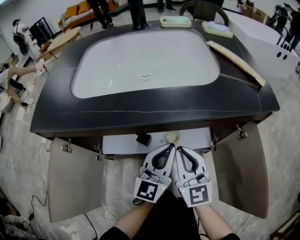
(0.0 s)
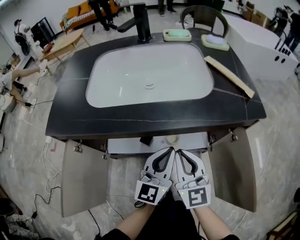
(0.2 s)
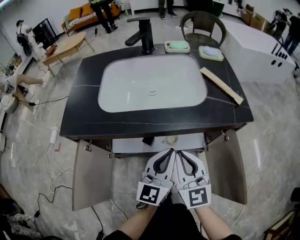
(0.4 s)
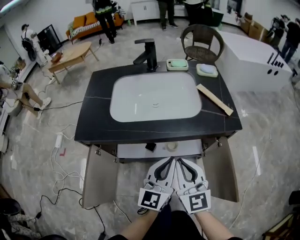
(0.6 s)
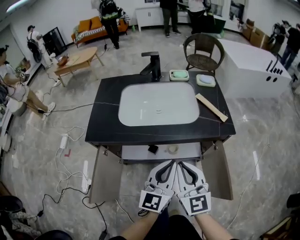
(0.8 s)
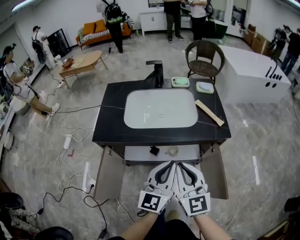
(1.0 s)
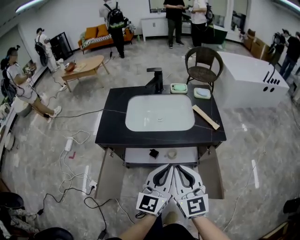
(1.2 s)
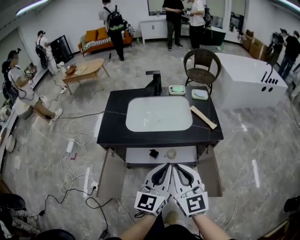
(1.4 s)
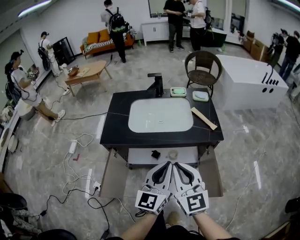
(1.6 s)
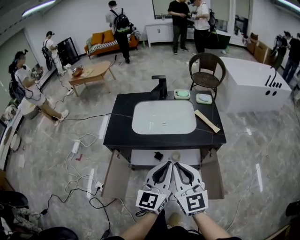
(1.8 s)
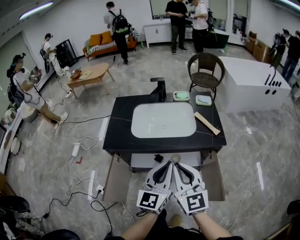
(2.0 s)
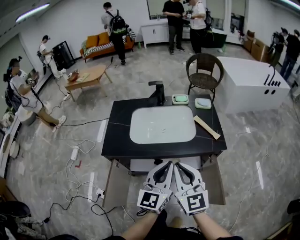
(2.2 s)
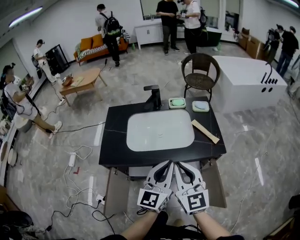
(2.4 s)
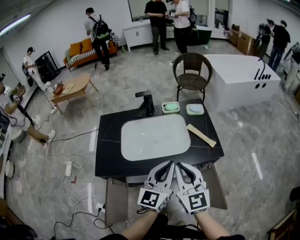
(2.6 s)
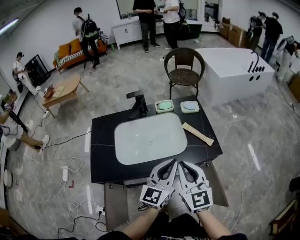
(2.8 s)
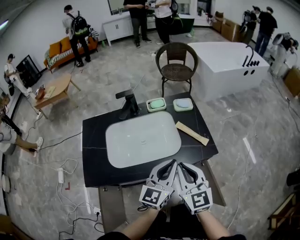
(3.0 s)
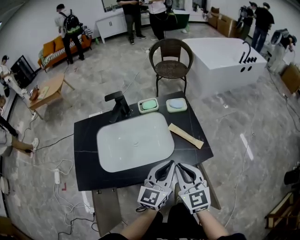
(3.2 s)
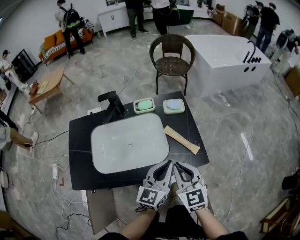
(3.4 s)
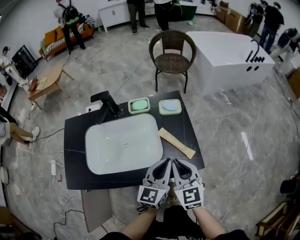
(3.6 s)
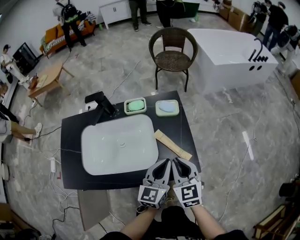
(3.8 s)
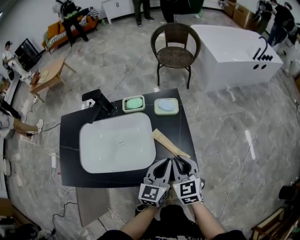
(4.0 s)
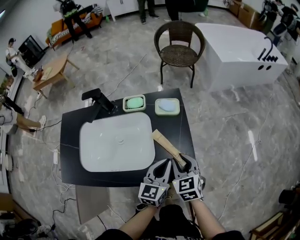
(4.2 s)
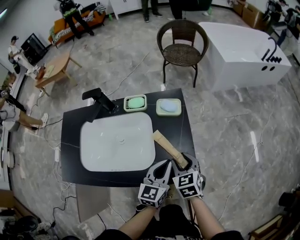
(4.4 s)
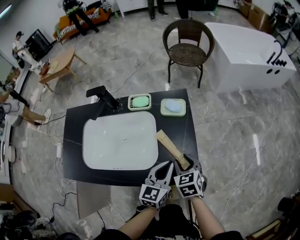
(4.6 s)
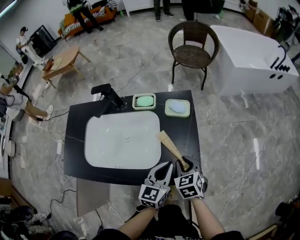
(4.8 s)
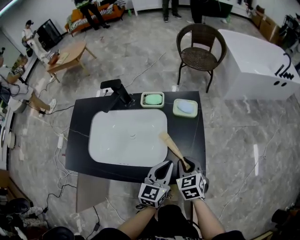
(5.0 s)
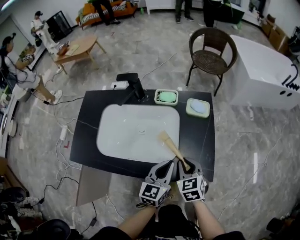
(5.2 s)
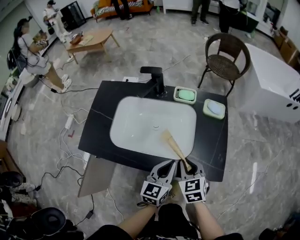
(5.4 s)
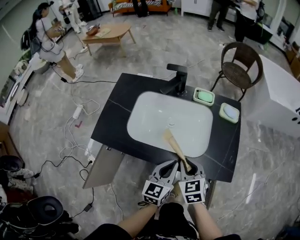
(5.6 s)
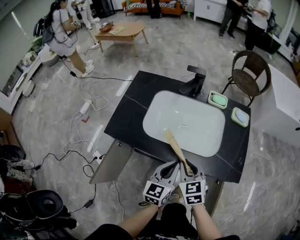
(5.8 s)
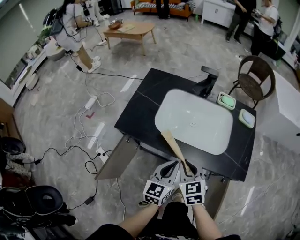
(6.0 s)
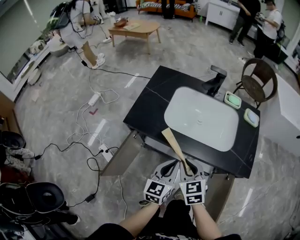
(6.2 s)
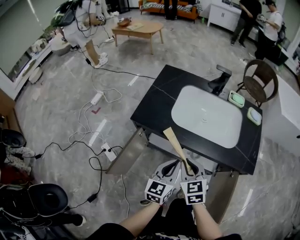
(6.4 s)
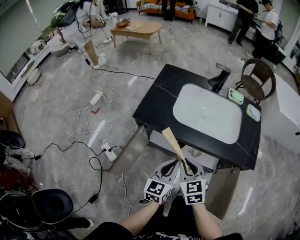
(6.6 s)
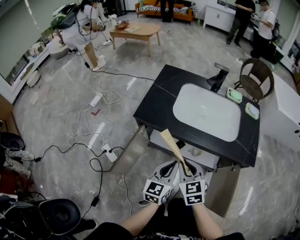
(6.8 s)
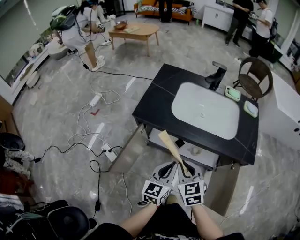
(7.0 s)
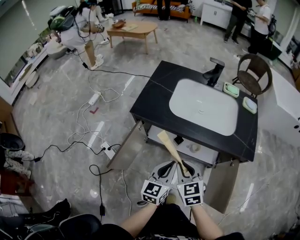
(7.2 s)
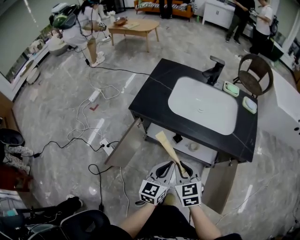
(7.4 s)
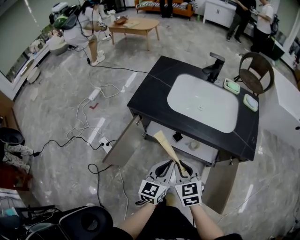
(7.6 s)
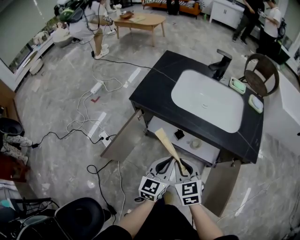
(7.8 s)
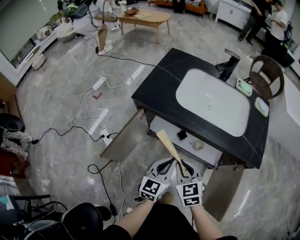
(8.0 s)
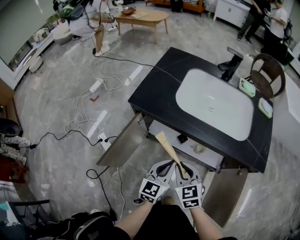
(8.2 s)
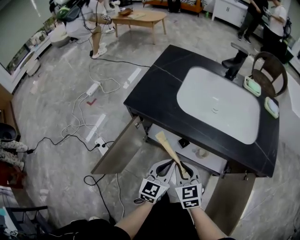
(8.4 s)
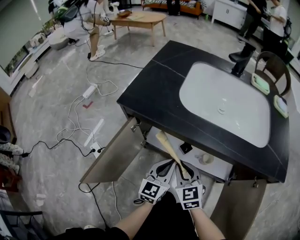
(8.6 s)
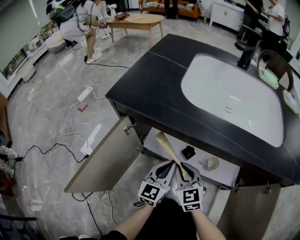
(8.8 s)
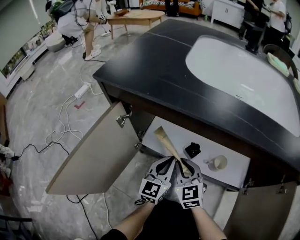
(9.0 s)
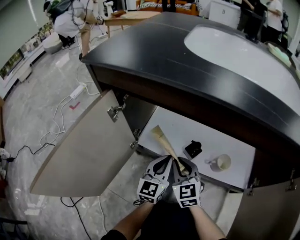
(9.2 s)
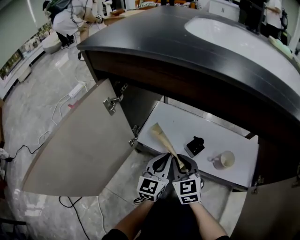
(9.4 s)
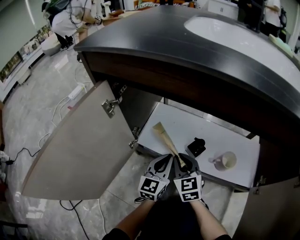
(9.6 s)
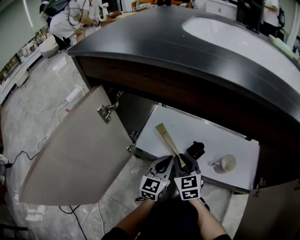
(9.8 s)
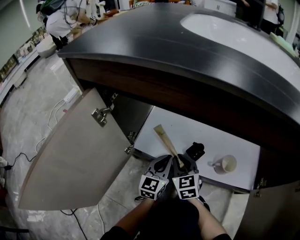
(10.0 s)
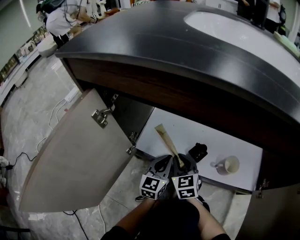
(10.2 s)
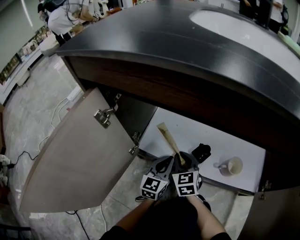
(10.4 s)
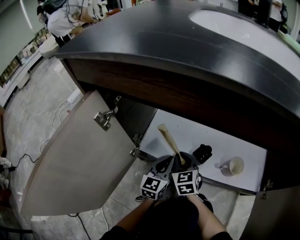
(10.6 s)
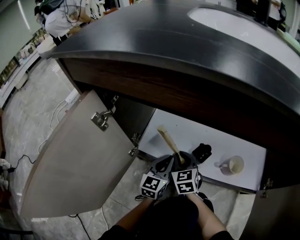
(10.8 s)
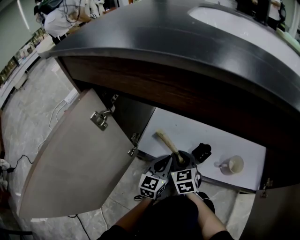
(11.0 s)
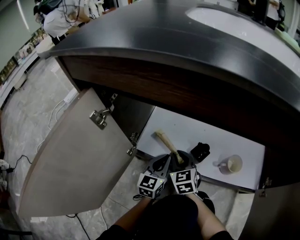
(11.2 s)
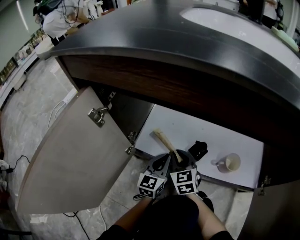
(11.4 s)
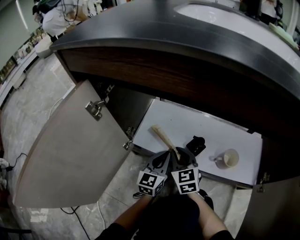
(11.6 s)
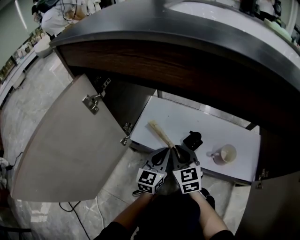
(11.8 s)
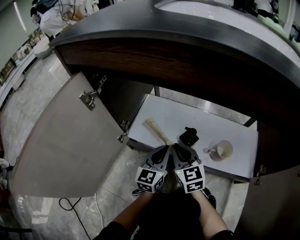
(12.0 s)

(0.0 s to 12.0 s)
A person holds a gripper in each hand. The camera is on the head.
0.0 s - 1.6 s: Both grippers move upward and backward, about 40 cm.
1.6 s - 3.0 s: The two grippers go approximately 20 cm forward. The left gripper rotates some 20 degrees.
3.0 s - 4.4 s: The left gripper is displaced to the right, downward and forward by about 20 cm, and swivels approximately 20 degrees, while the right gripper travels downward, forward and to the right by roughly 30 cm, angles its fingers downward, by approximately 30 degrees, and opens.
4.4 s - 6.0 s: The two grippers go some 35 cm to the left and backward. The left gripper changes its angle by approximately 20 degrees. The right gripper changes its angle by about 30 degrees, and closes.
6.0 s - 7.6 s: Both grippers move backward and to the left, approximately 15 cm.
7.6 s - 9.0 s: The grippers both shift downward and forward by about 40 cm.
9.0 s - 10.4 s: The right gripper shifts about 20 cm downward and forward. The left gripper moves downward, about 15 cm.
10.4 s - 12.0 s: The right gripper shifts roughly 5 cm upward; the left gripper moves approximately 5 cm.

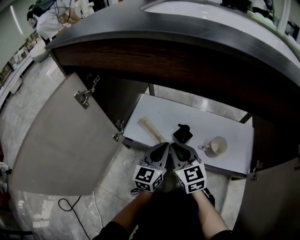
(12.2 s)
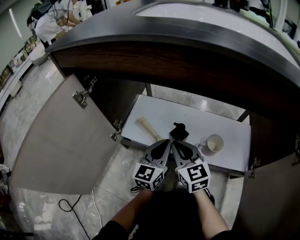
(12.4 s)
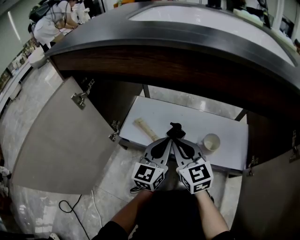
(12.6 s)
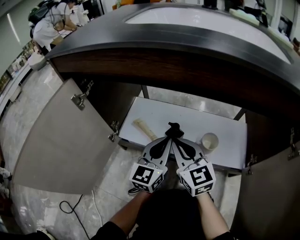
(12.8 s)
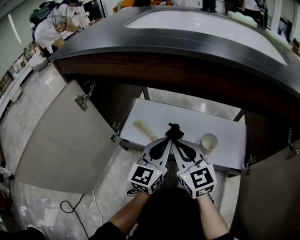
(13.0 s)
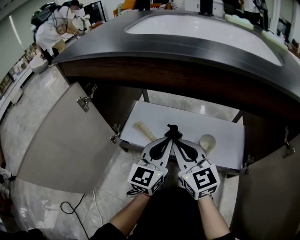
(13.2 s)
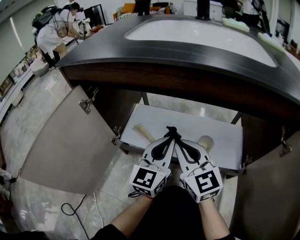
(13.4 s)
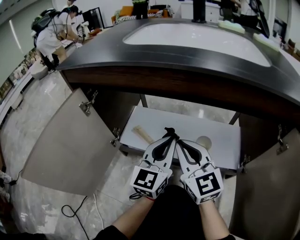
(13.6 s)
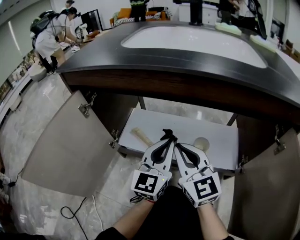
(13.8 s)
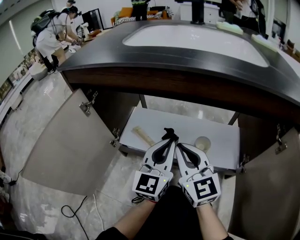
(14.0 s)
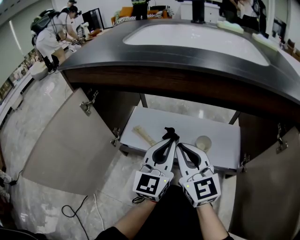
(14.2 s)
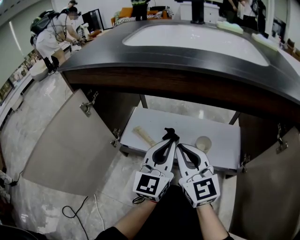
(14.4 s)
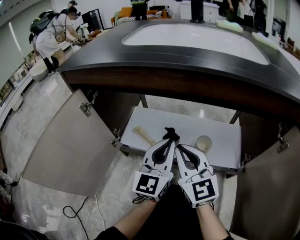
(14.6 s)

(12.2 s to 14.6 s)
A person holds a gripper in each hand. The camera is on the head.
12.2 s - 13.4 s: The right gripper is displaced upward by roughly 15 cm; the left gripper goes approximately 15 cm upward and to the right.
13.4 s - 14.6 s: There are only small adjustments of the grippers.

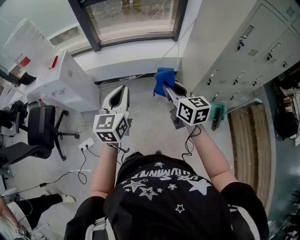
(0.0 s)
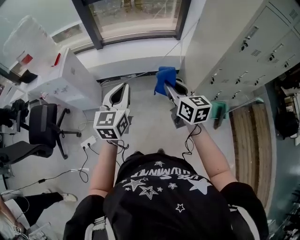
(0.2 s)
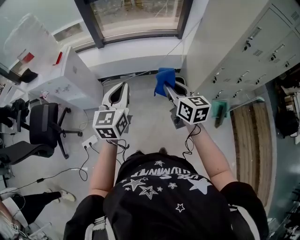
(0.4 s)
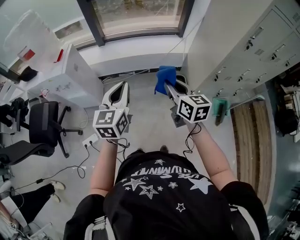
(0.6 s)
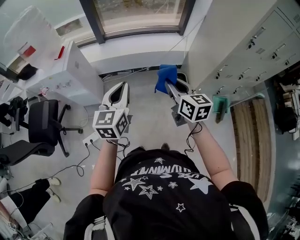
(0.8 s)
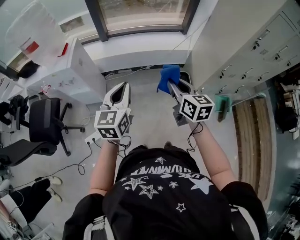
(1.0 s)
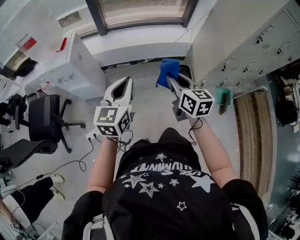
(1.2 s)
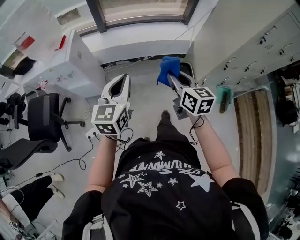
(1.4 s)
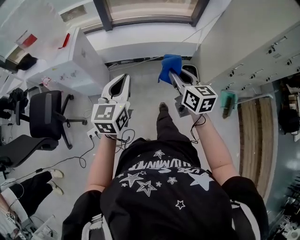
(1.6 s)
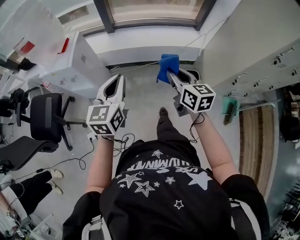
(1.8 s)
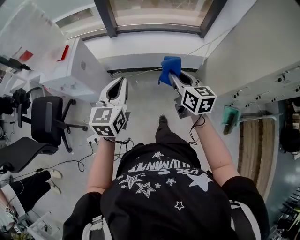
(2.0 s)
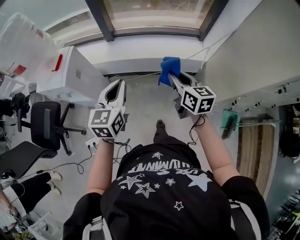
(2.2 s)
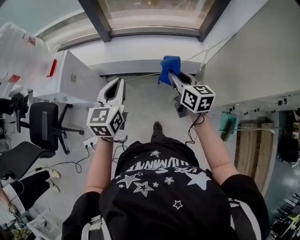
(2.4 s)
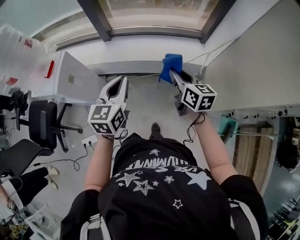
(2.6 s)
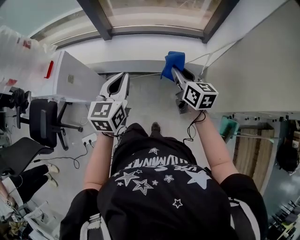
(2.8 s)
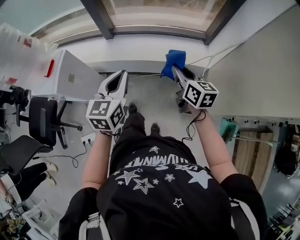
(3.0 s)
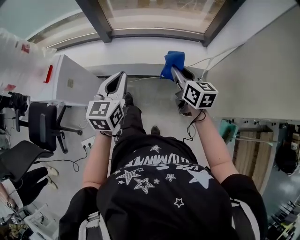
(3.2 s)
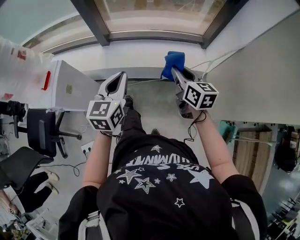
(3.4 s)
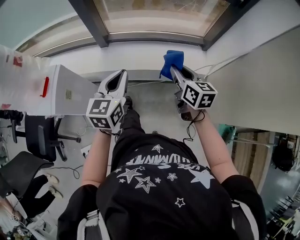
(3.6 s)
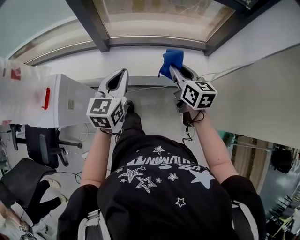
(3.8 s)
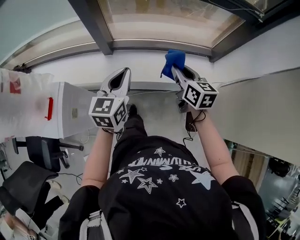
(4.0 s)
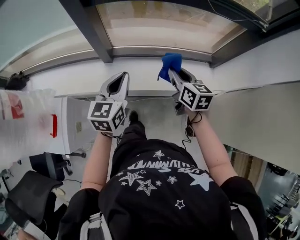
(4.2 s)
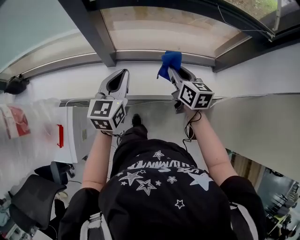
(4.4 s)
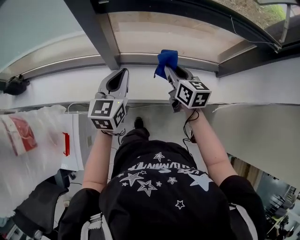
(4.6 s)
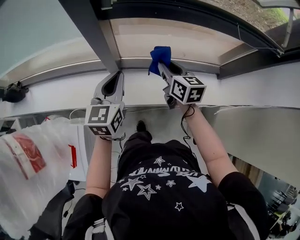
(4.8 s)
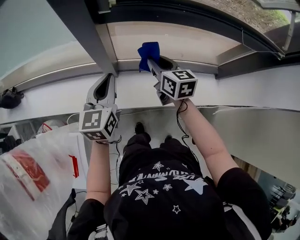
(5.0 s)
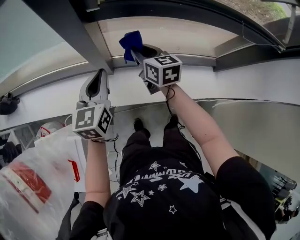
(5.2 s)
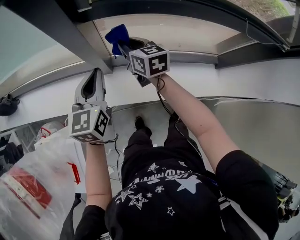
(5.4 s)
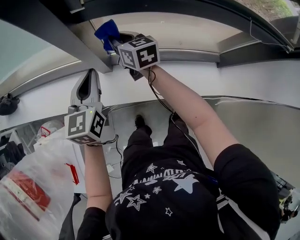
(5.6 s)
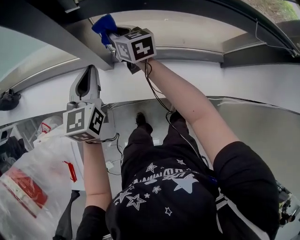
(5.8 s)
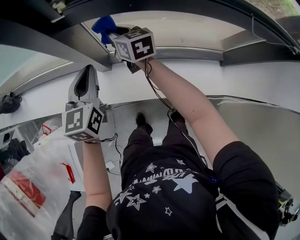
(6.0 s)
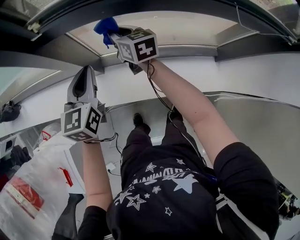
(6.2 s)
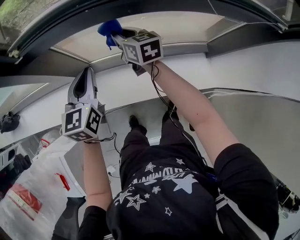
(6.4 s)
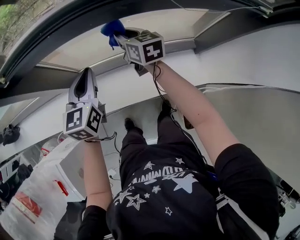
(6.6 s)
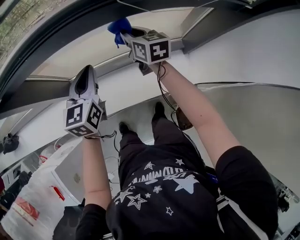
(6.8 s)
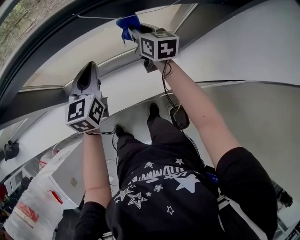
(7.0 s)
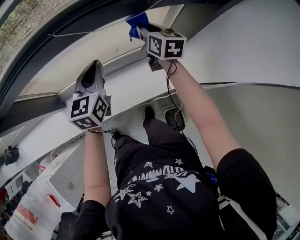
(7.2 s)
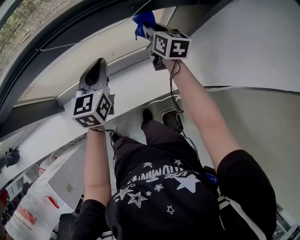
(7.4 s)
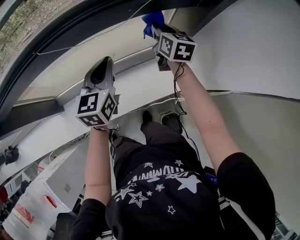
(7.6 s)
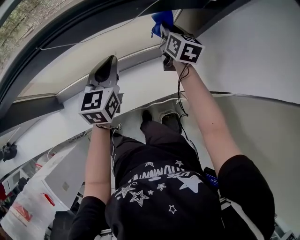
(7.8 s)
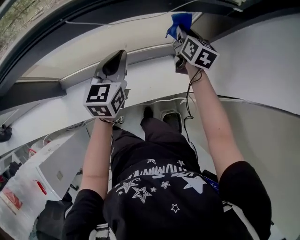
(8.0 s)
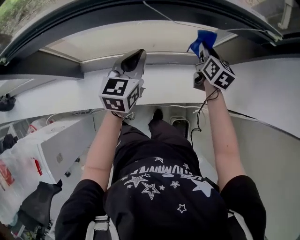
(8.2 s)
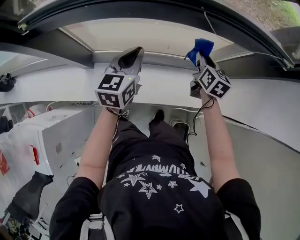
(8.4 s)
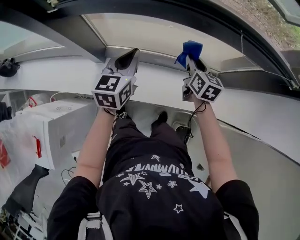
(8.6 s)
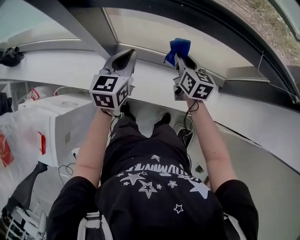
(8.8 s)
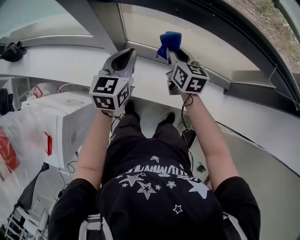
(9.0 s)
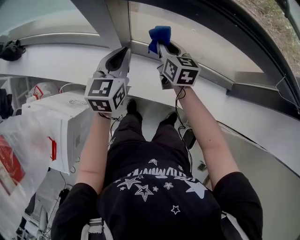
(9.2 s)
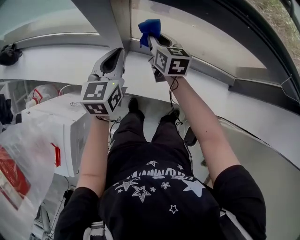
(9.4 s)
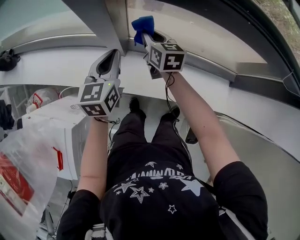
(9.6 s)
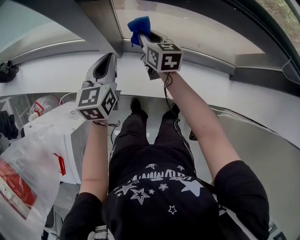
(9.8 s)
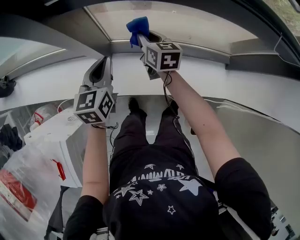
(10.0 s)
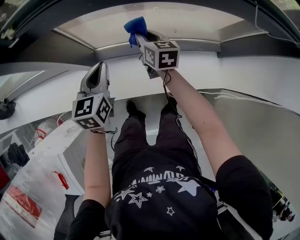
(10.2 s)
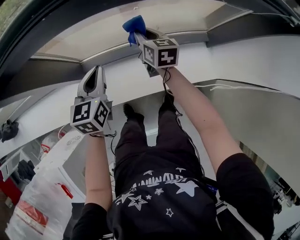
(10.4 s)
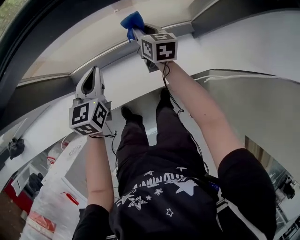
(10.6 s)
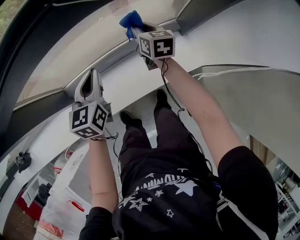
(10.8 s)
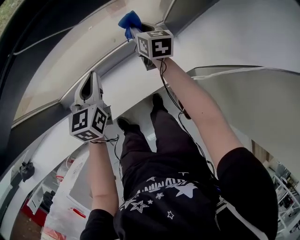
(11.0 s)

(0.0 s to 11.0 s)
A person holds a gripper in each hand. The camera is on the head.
0.0 s - 1.6 s: The two grippers go roughly 15 cm to the left.
1.6 s - 3.2 s: Both grippers move forward and to the right, roughly 30 cm.
3.2 s - 4.8 s: Both grippers are carried forward and to the left, about 50 cm.
4.8 s - 6.2 s: The left gripper shifts approximately 10 cm forward, while the right gripper shifts about 15 cm forward.
6.2 s - 7.8 s: The two grippers travel together, approximately 50 cm. The right gripper turns by some 40 degrees. Meanwhile the left gripper turns by some 20 degrees.
7.8 s - 9.4 s: The two grippers travel together, roughly 60 cm. The right gripper rotates approximately 40 degrees. Meanwhile the left gripper turns by about 30 degrees.
9.4 s - 11.0 s: The two grippers travel together, about 50 cm. The left gripper changes its angle by some 30 degrees, while the right gripper changes its angle by approximately 40 degrees.
